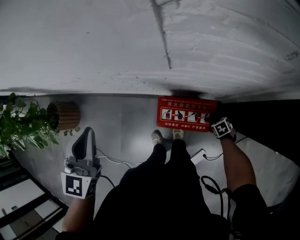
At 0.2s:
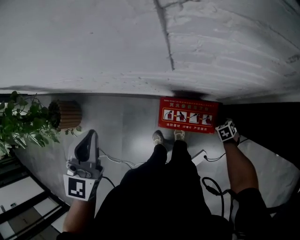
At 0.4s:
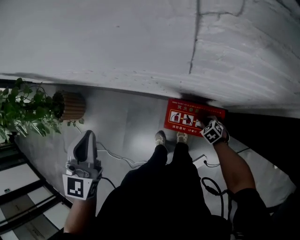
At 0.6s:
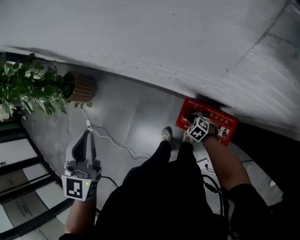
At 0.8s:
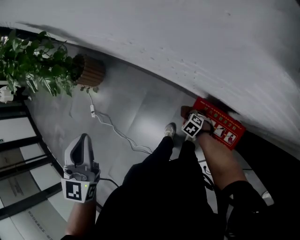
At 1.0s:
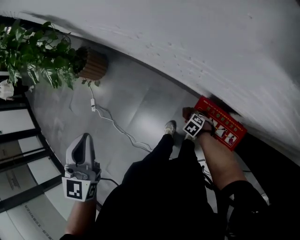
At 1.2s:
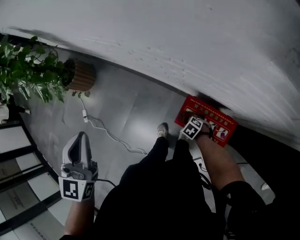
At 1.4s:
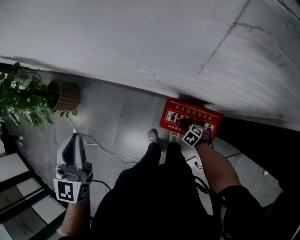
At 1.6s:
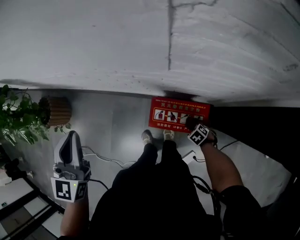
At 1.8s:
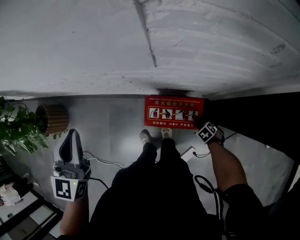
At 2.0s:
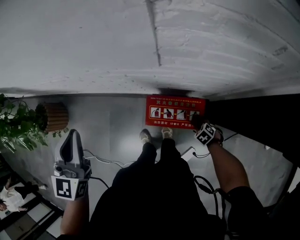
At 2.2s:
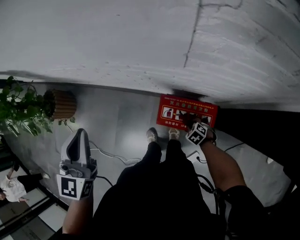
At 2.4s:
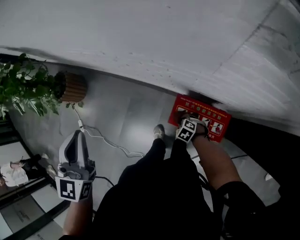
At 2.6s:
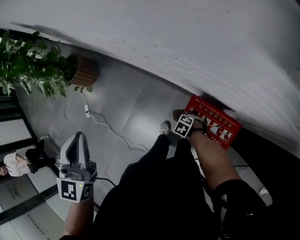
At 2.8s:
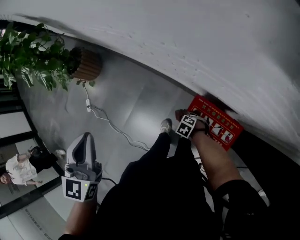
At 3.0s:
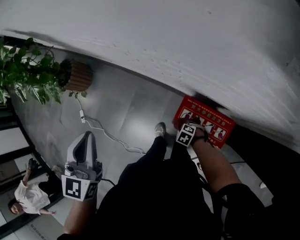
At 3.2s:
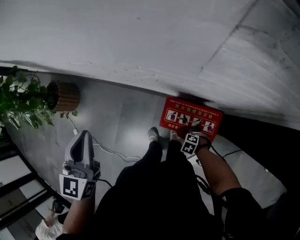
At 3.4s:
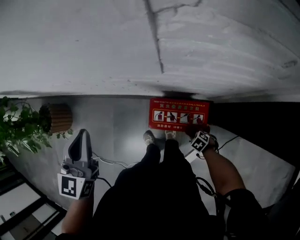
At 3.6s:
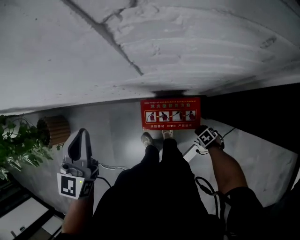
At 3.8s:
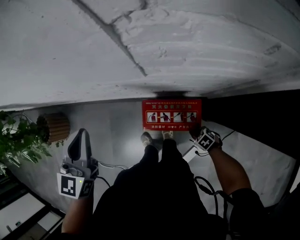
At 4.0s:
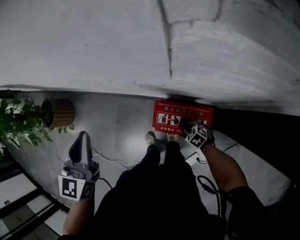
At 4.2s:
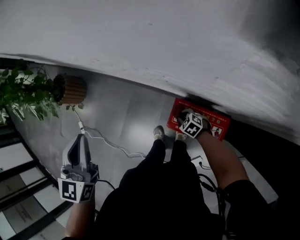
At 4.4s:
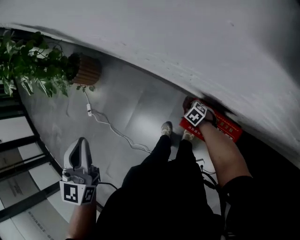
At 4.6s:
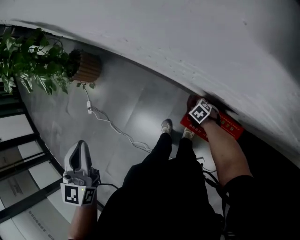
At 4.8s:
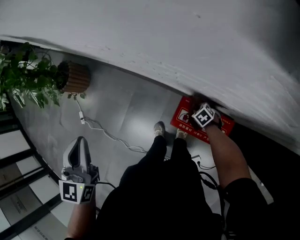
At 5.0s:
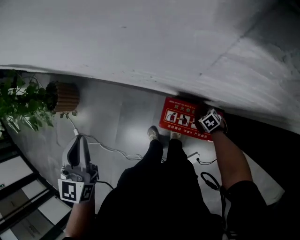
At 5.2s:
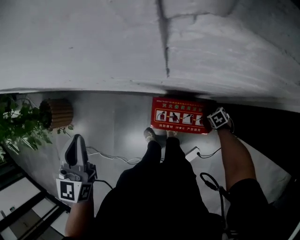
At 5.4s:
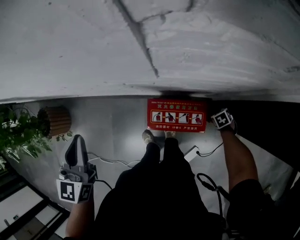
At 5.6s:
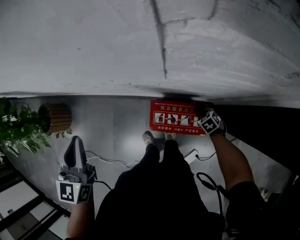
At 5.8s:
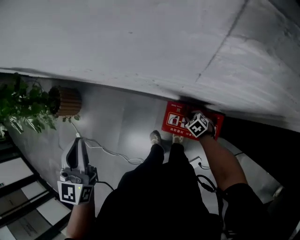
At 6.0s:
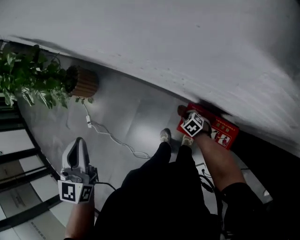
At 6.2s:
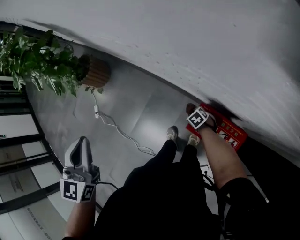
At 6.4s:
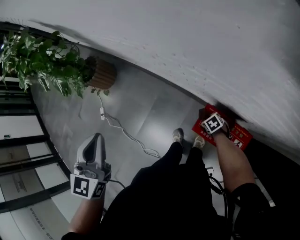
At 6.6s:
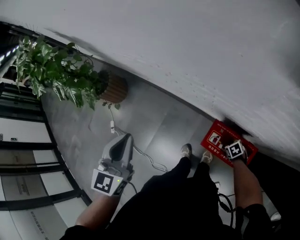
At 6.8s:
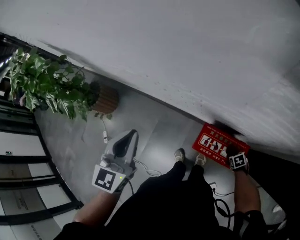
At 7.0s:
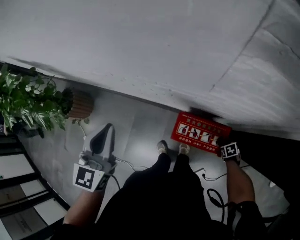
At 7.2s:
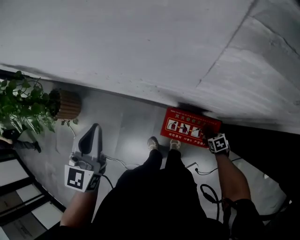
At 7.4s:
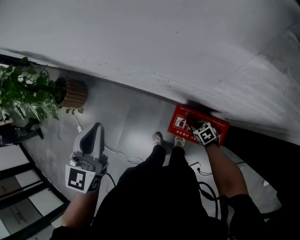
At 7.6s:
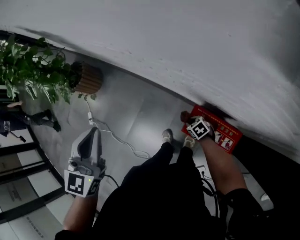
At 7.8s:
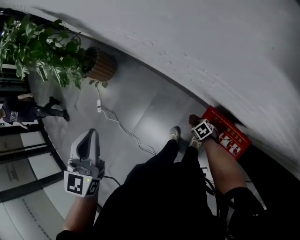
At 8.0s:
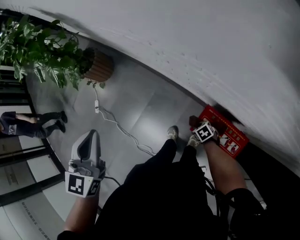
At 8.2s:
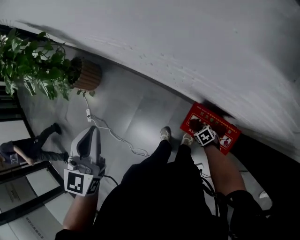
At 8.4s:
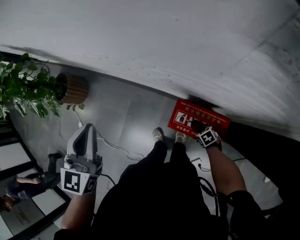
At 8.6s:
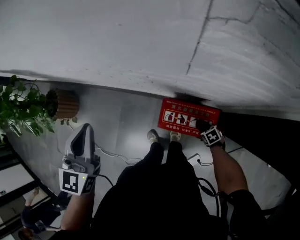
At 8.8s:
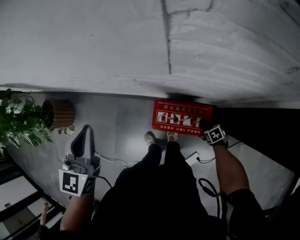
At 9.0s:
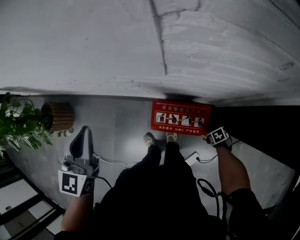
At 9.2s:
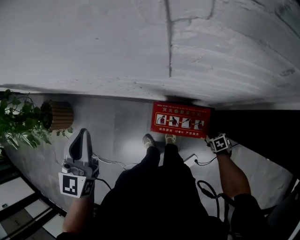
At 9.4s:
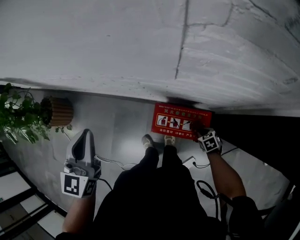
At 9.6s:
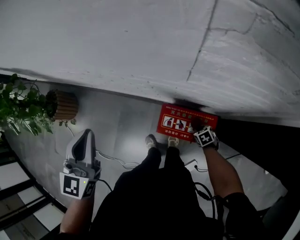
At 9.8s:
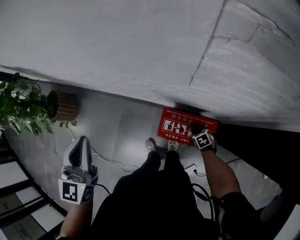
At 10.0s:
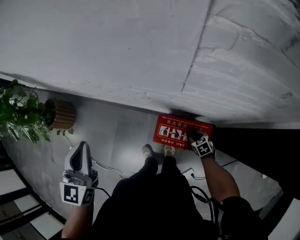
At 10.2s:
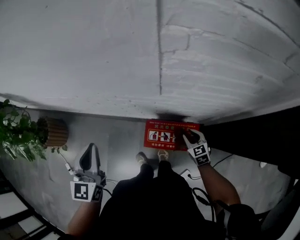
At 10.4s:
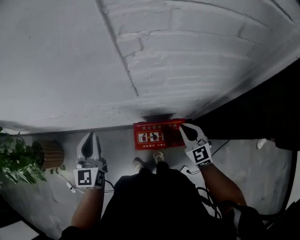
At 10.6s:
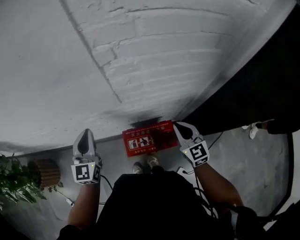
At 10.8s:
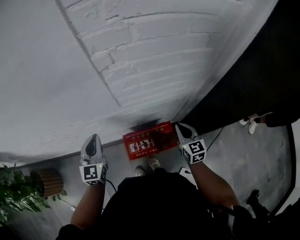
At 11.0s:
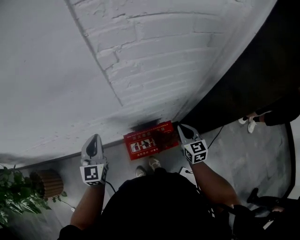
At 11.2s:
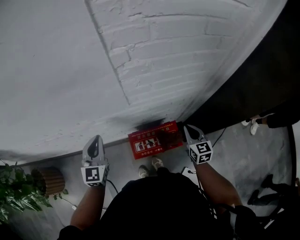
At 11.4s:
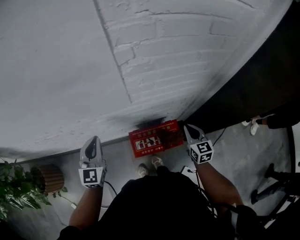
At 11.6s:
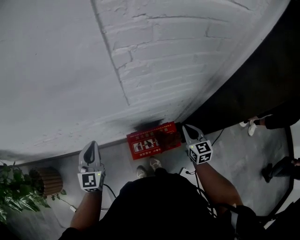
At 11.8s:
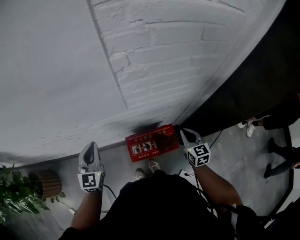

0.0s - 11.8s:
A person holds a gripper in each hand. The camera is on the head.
0.0s - 1.4s: The right gripper turns by about 40 degrees.
1.4s - 3.0s: The right gripper rotates roughly 20 degrees.
6.0s - 7.4s: The left gripper shifts by approximately 10 cm.
7.4s - 8.8s: The right gripper changes place by about 20 cm, and rotates some 30 degrees.
8.8s - 10.4s: The right gripper goes roughly 30 cm upward, angles its fingers upward, by about 50 degrees, and opens and closes again. Meanwhile the left gripper ends up approximately 5 cm from where it was.
10.4s - 11.8s: The right gripper heads to the right, covering some 5 cm, and swivels some 30 degrees; the left gripper shifts by roughly 5 cm.

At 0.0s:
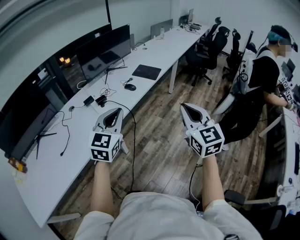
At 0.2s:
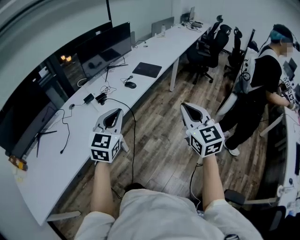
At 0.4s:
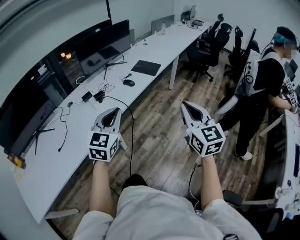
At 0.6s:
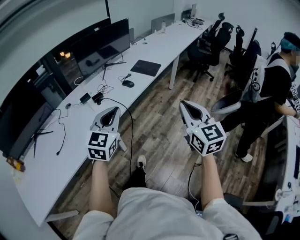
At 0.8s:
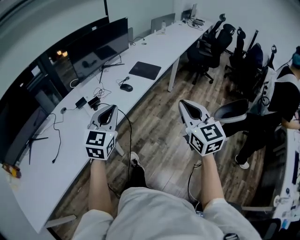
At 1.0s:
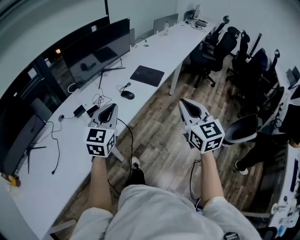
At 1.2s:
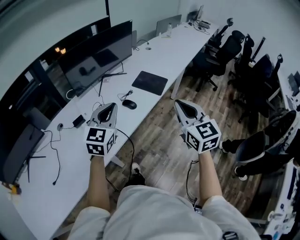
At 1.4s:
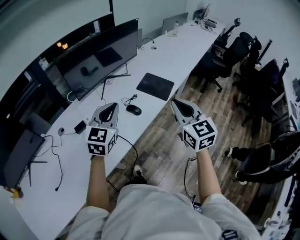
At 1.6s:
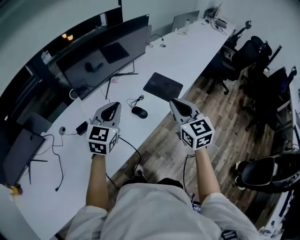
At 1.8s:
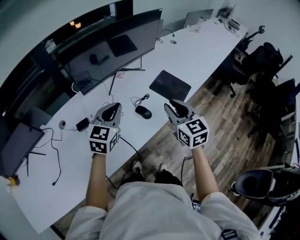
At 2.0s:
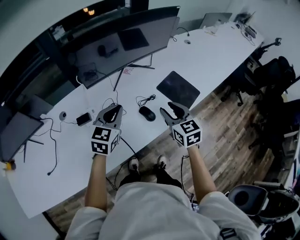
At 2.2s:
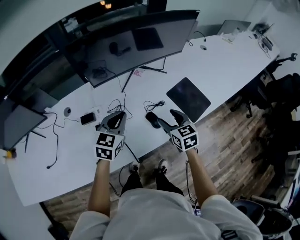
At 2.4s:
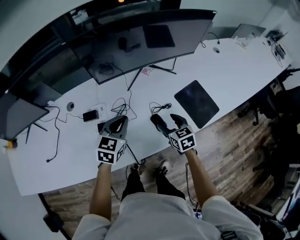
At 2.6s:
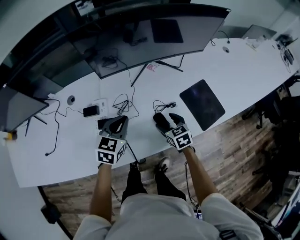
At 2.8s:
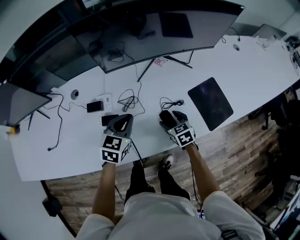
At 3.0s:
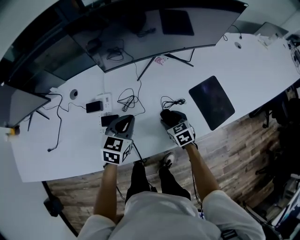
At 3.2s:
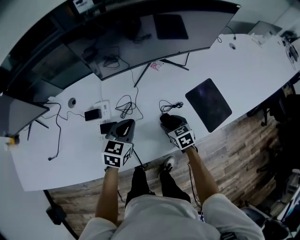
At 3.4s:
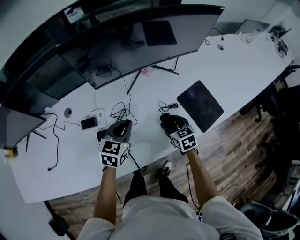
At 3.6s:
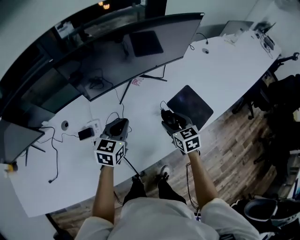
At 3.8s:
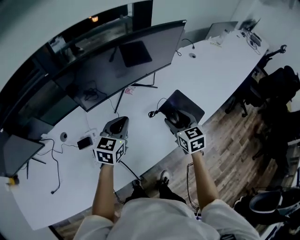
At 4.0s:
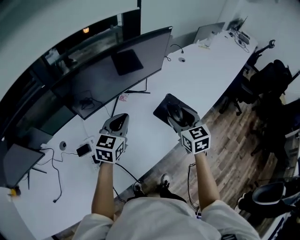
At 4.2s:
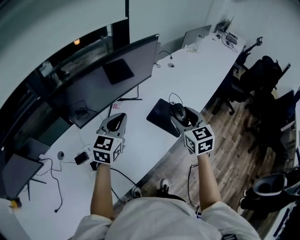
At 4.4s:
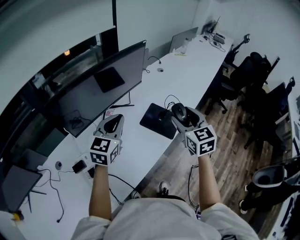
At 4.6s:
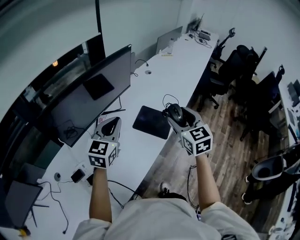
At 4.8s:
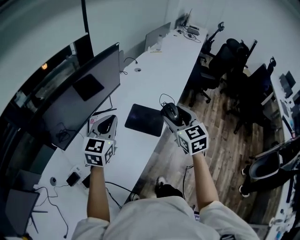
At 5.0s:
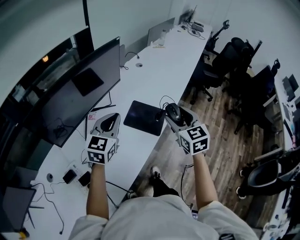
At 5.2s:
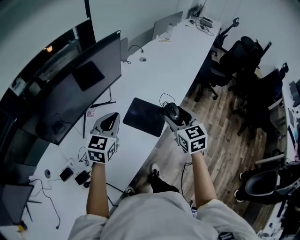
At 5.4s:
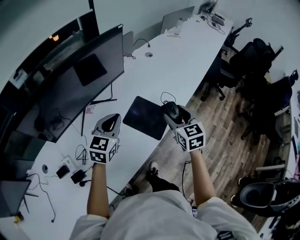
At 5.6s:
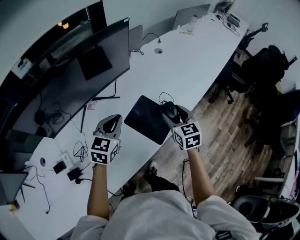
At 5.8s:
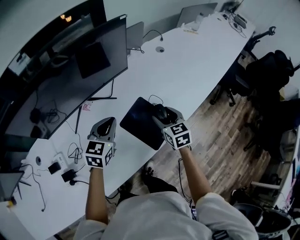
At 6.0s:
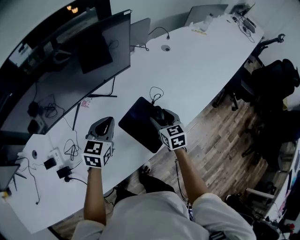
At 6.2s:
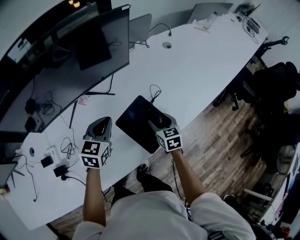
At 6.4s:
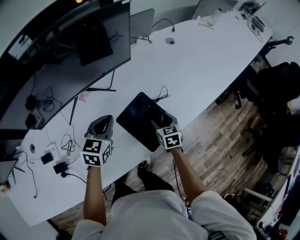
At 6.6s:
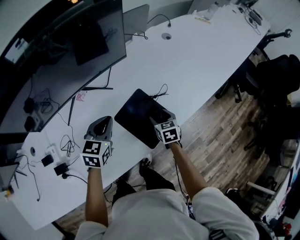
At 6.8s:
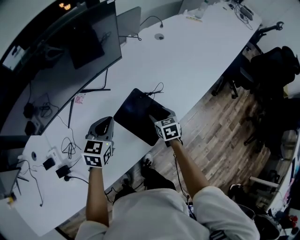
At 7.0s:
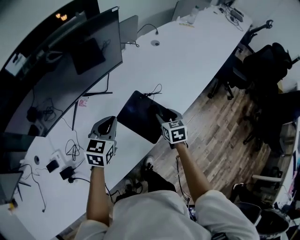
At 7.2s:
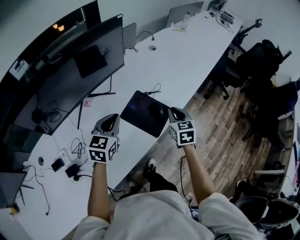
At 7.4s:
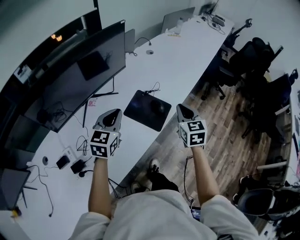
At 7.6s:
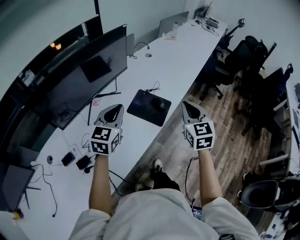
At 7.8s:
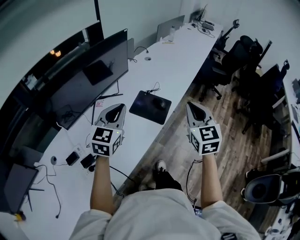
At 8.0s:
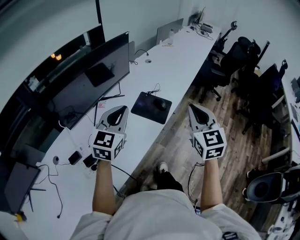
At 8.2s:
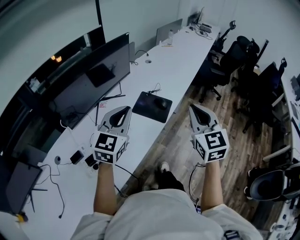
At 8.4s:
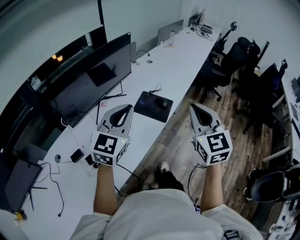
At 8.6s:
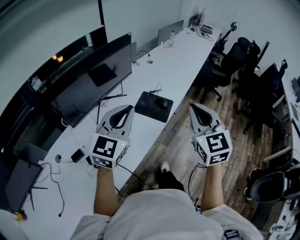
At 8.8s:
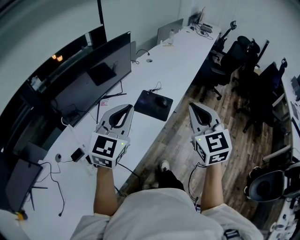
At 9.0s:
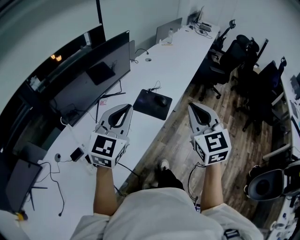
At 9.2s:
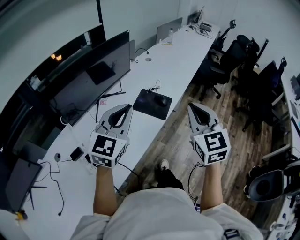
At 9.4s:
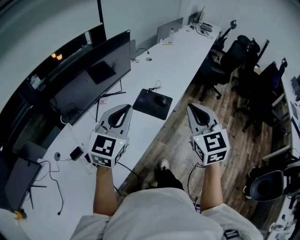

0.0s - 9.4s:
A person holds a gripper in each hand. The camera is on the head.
0.0s - 1.6s: Both grippers are carried forward, roughly 50 cm.
1.6s - 3.2s: The left gripper is displaced downward by roughly 20 cm, and turns by roughly 30 degrees. Meanwhile the right gripper is displaced downward by roughly 35 cm, points its fingers approximately 30 degrees further downward, and opens.
3.2s - 4.8s: The right gripper moves upward, approximately 35 cm, and rotates about 50 degrees, while the left gripper heads upward, covering some 25 cm, and turns by approximately 40 degrees.
4.8s - 6.2s: The right gripper goes some 40 cm downward and forward, and swivels some 30 degrees, while the left gripper travels downward and forward by about 25 cm, and changes its angle by approximately 30 degrees.
6.2s - 7.8s: The right gripper shifts about 35 cm upward, turns by some 40 degrees, and closes up. Meanwhile the left gripper moves roughly 30 cm, and rotates roughly 30 degrees.
7.8s - 9.4s: The two grippers go approximately 10 cm backward and upward.

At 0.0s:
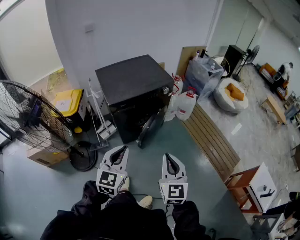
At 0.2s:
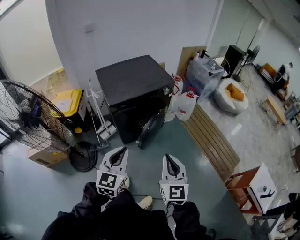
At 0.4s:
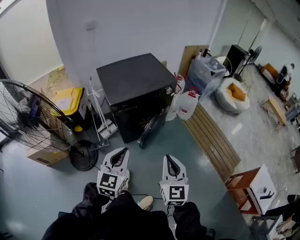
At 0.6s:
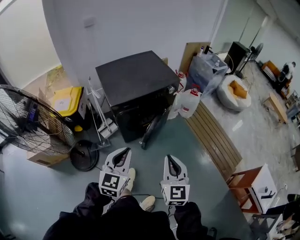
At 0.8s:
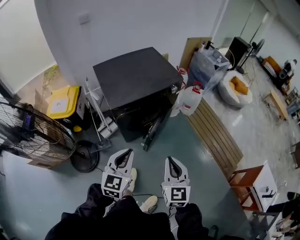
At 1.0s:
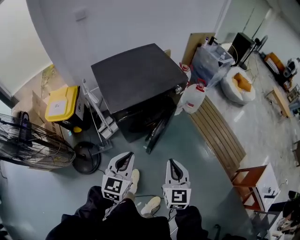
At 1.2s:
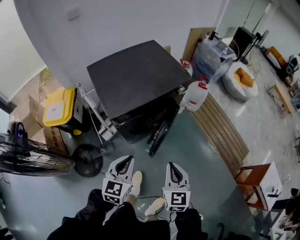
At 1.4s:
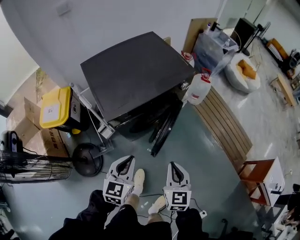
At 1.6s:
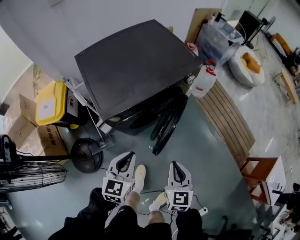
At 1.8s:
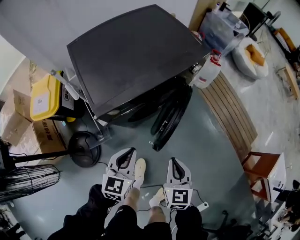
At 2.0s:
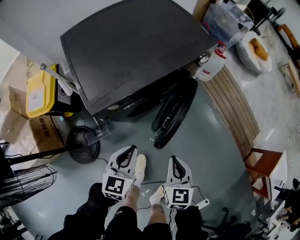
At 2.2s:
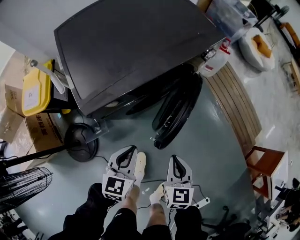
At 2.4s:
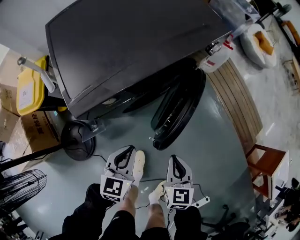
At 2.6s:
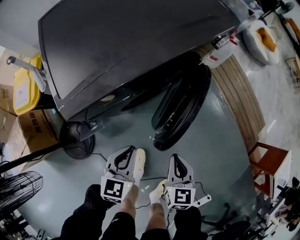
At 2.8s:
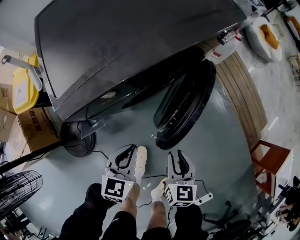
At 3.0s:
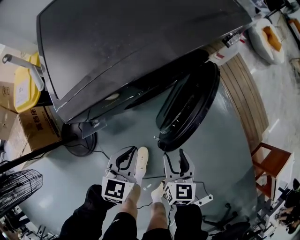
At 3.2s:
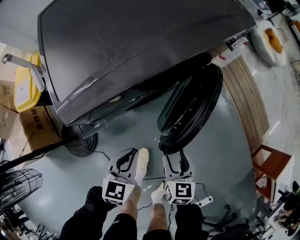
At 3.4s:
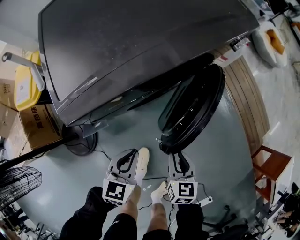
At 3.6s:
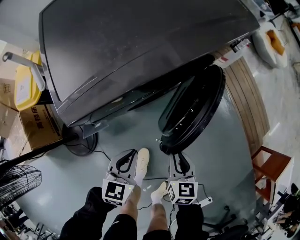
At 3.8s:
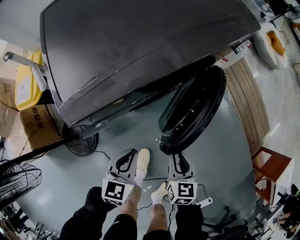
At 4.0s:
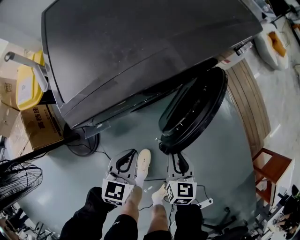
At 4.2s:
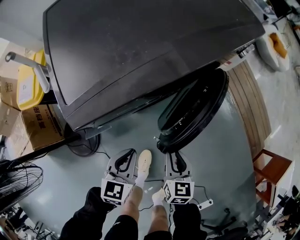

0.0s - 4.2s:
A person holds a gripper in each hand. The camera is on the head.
0.0s - 1.4s: The grippers both shift forward, downward and to the left by some 30 cm.
1.4s - 2.8s: The grippers both shift downward by roughly 30 cm. The right gripper opens its fingers.
2.8s - 4.2s: The right gripper ends up about 5 cm from where it was, and opens, then closes again.
